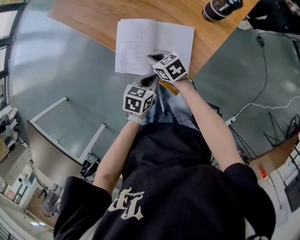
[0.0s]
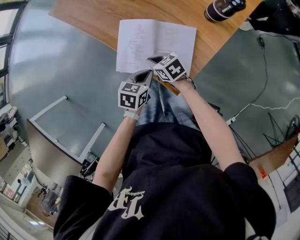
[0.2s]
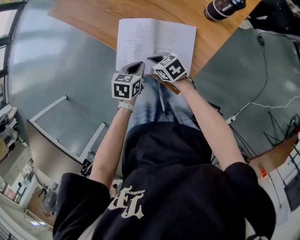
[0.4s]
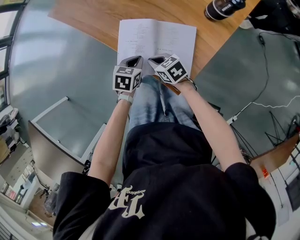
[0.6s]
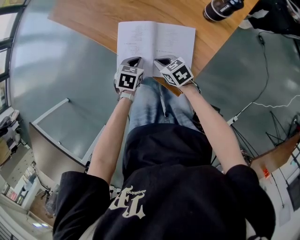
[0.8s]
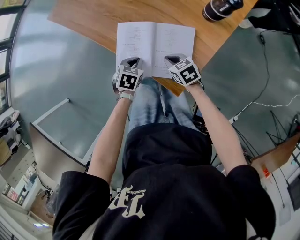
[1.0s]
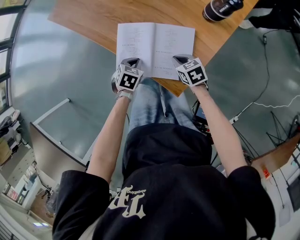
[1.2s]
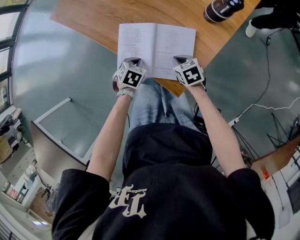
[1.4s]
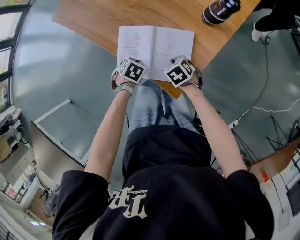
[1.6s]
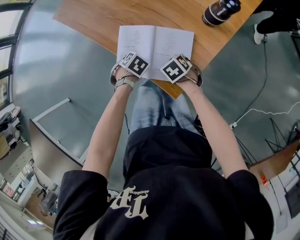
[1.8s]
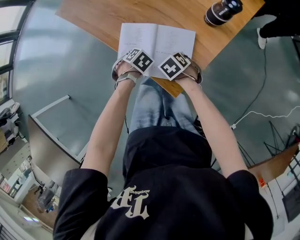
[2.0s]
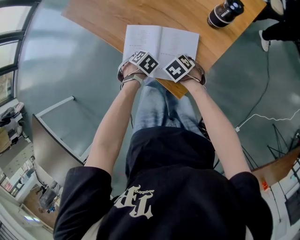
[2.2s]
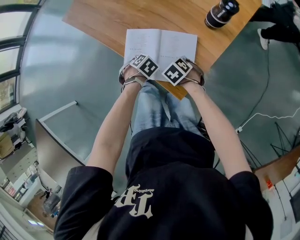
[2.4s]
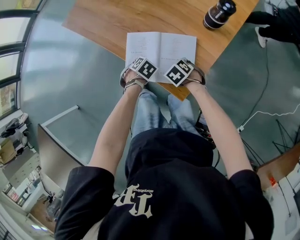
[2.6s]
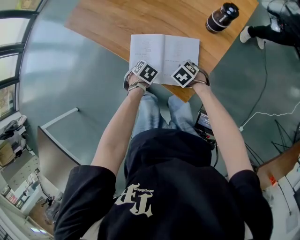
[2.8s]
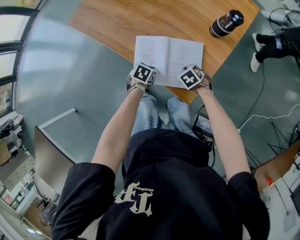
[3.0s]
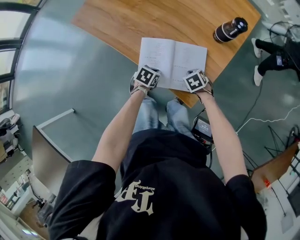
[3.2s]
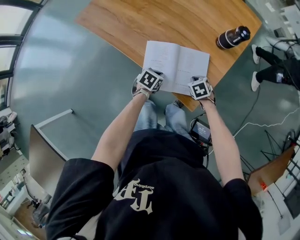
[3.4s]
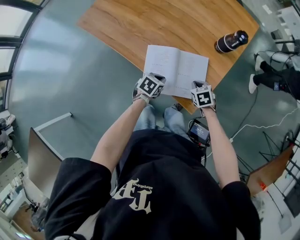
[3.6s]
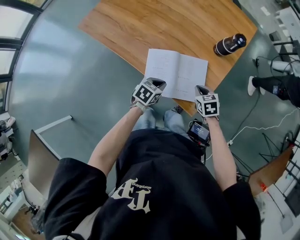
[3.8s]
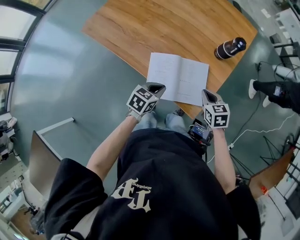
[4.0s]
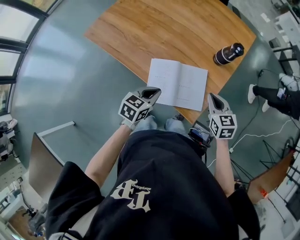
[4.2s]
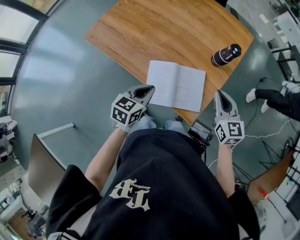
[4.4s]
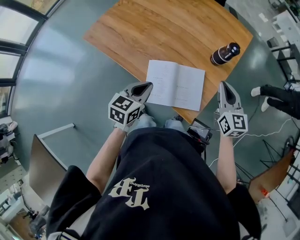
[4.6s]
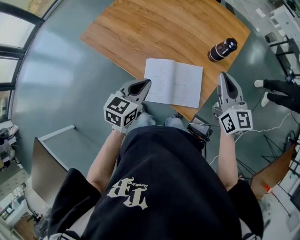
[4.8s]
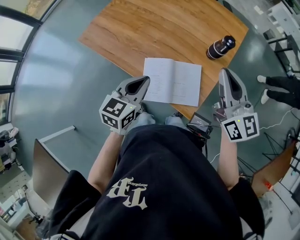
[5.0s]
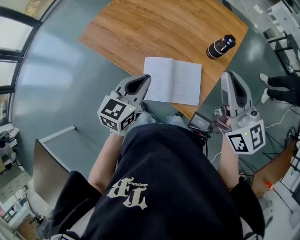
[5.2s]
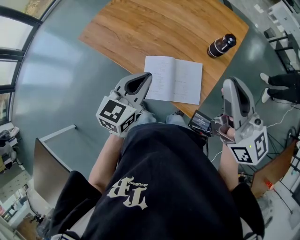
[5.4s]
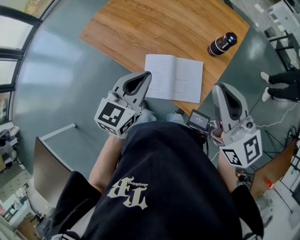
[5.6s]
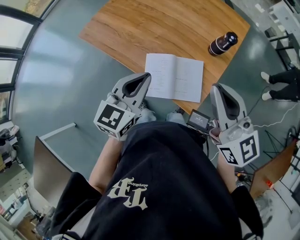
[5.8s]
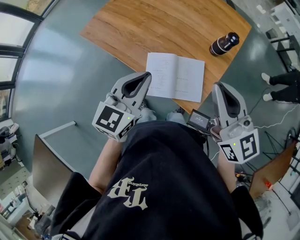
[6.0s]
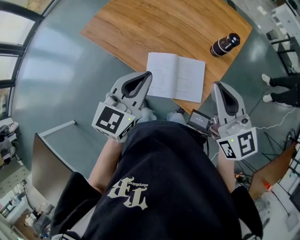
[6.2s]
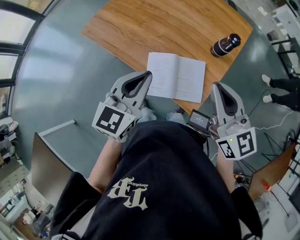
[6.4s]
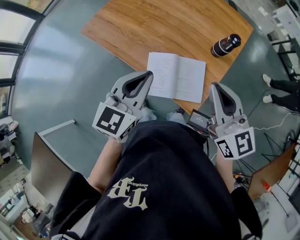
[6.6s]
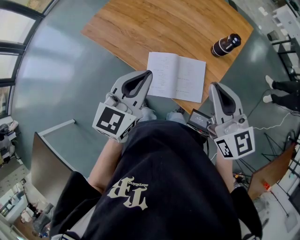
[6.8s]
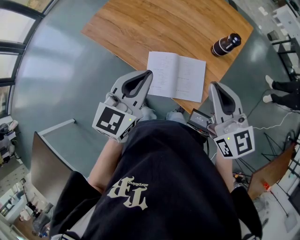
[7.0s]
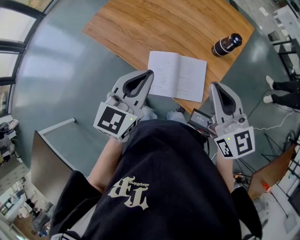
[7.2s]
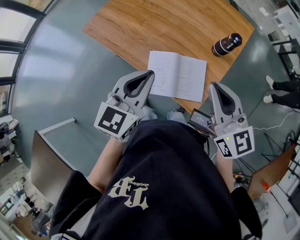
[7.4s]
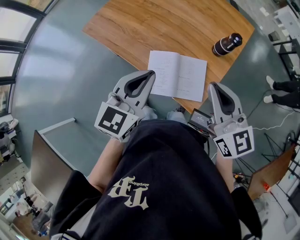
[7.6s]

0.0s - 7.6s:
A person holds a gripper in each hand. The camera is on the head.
0.0s - 1.6s: The right gripper ends up roughly 10 cm from where it was, and swivels roughly 30 degrees, while the left gripper shifts by about 15 cm, and tips its fingers downward by some 30 degrees.
1.6s - 3.0s: The grippers make only small movements.
3.0s - 4.6s: Both grippers move upward, about 30 cm. The right gripper angles its fingers upward, by approximately 60 degrees. Meanwhile the left gripper tilts its fingers about 40 degrees upward.
4.6s - 6.0s: The left gripper is displaced upward by some 15 cm; the right gripper goes about 20 cm upward, to the left and backward.
6.0s - 7.6s: The grippers stay close to where they were, moving slightly.

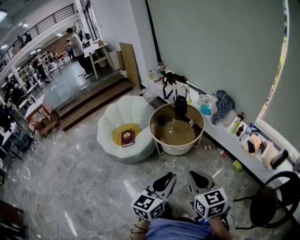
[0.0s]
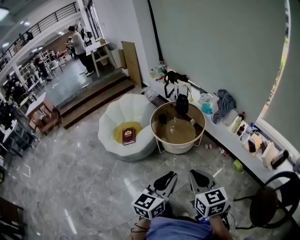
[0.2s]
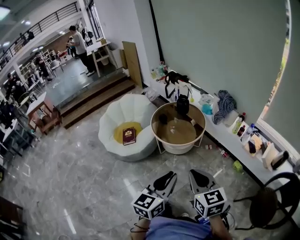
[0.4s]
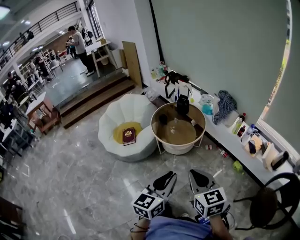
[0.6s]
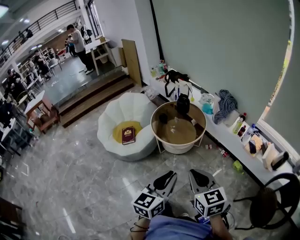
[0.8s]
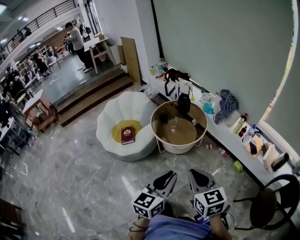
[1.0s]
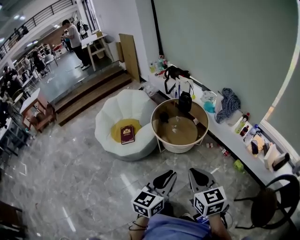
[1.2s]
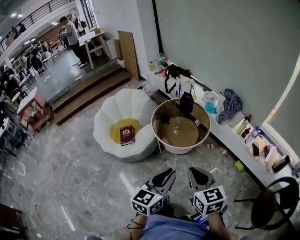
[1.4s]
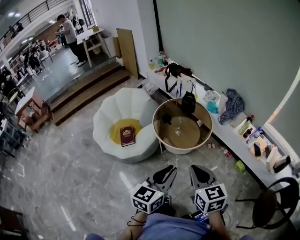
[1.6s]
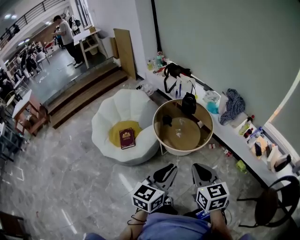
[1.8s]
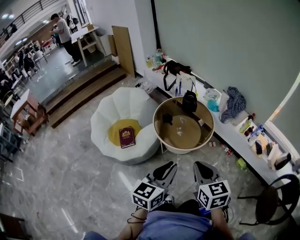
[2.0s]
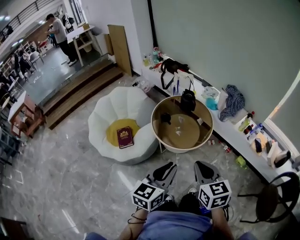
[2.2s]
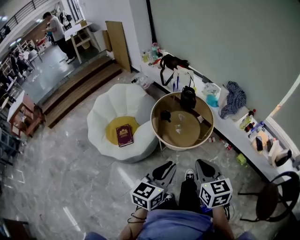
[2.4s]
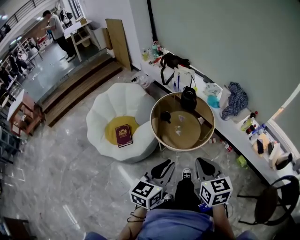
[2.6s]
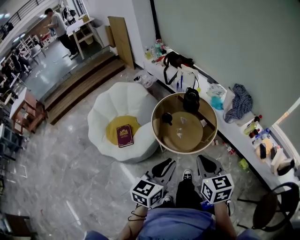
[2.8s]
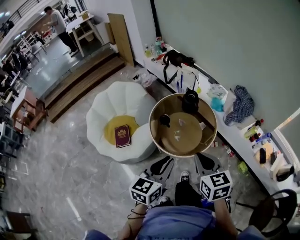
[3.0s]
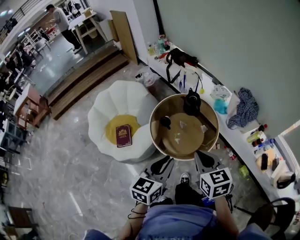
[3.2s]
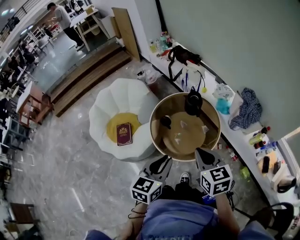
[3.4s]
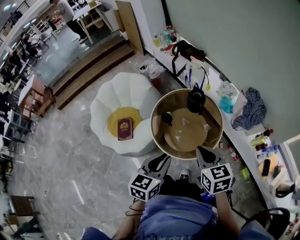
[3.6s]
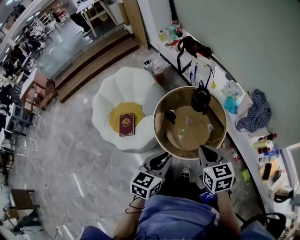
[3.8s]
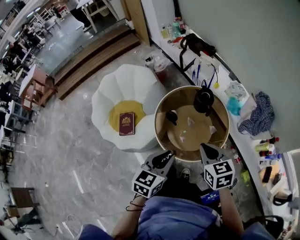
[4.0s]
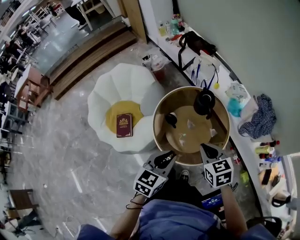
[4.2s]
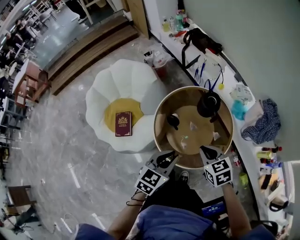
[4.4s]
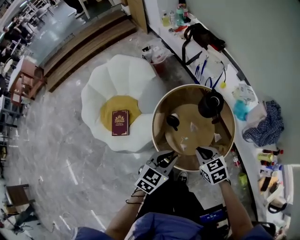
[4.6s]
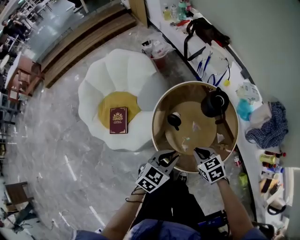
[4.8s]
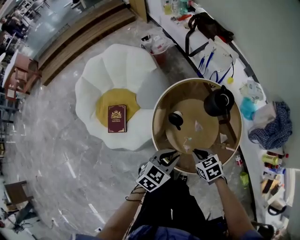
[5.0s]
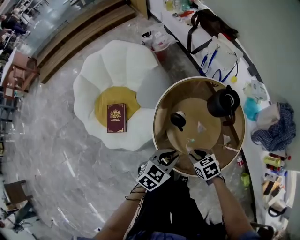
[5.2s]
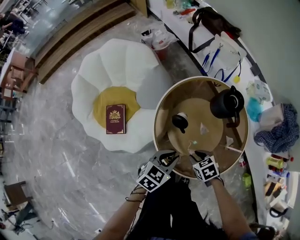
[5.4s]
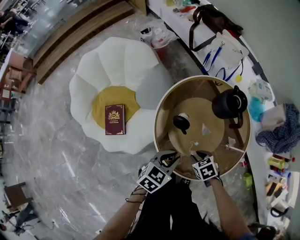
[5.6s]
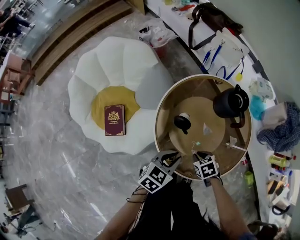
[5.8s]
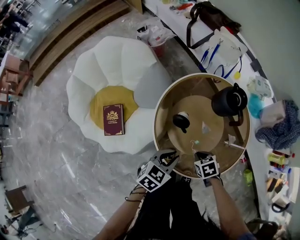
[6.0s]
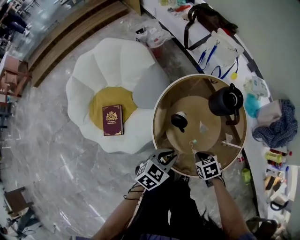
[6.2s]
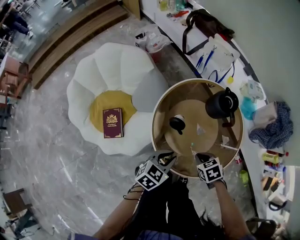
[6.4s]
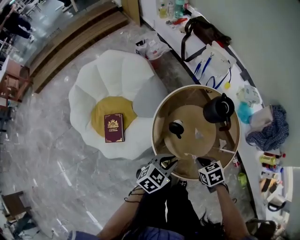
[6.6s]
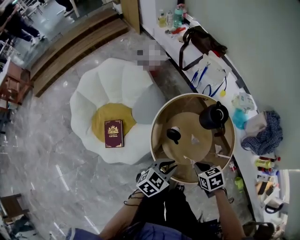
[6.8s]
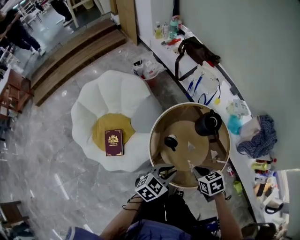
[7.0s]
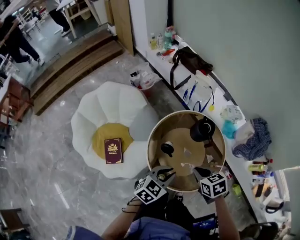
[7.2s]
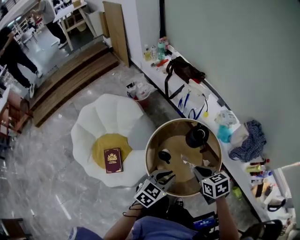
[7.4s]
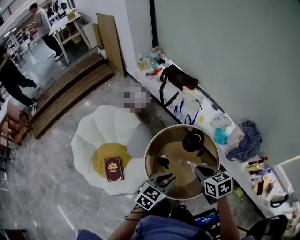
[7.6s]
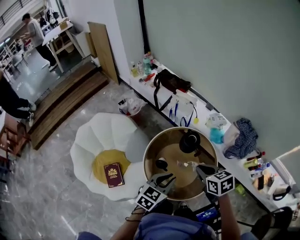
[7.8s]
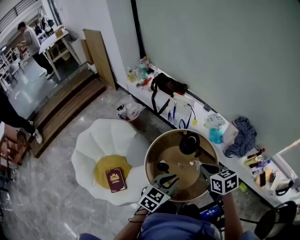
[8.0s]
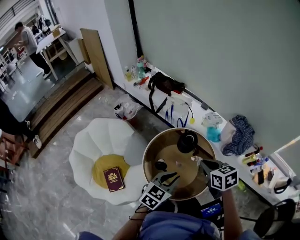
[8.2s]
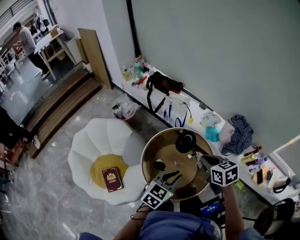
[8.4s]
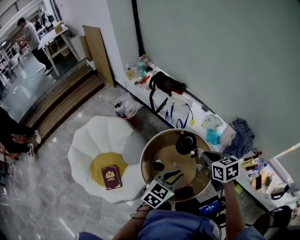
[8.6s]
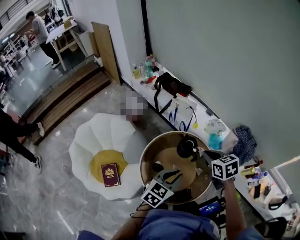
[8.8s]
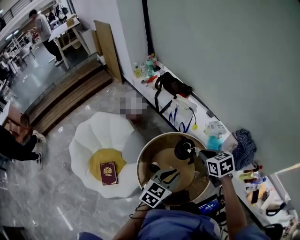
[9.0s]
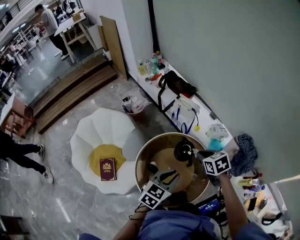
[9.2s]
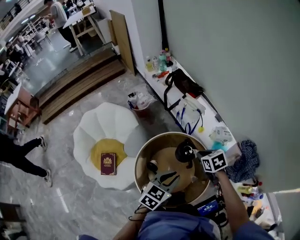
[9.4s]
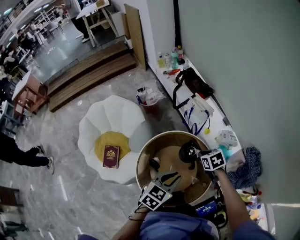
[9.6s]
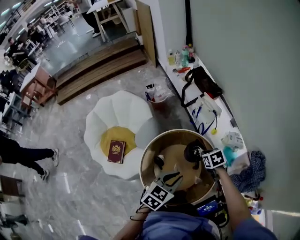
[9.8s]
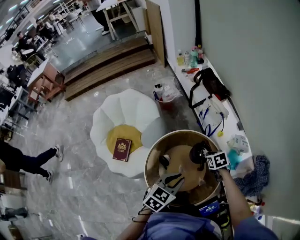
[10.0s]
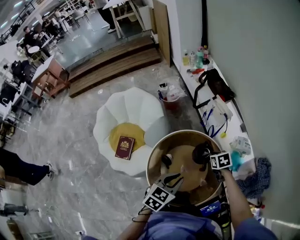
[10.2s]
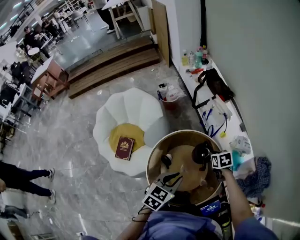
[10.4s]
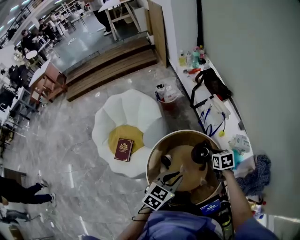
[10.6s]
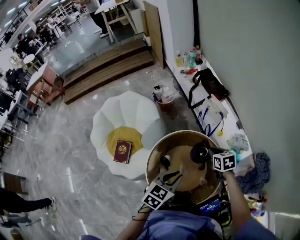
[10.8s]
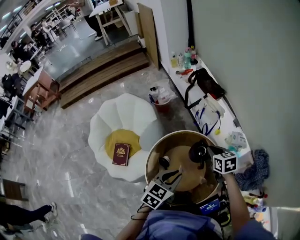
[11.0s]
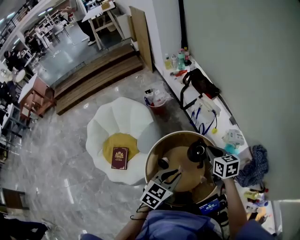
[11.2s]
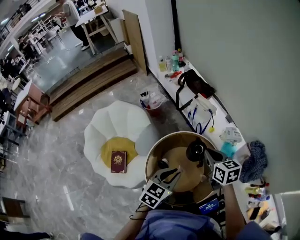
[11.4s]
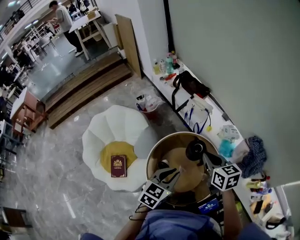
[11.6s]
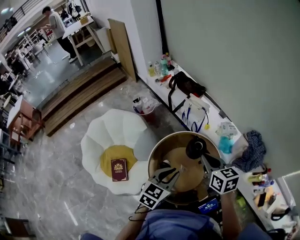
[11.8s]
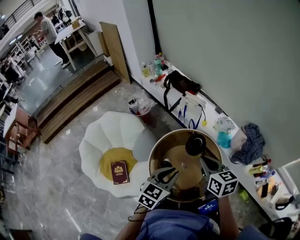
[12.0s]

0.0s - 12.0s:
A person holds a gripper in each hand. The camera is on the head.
0.0s - 1.6s: The two grippers go some 20 cm forward and to the left.
1.6s - 3.0s: Both grippers travel together forward, approximately 20 cm.
3.0s - 4.4s: Both grippers travel together forward and downward, approximately 25 cm. The right gripper swivels about 30 degrees.
4.4s - 6.0s: Both grippers move downward, approximately 25 cm. The right gripper rotates some 30 degrees, and opens, then closes once more.
6.0s - 7.6s: The right gripper heads upward, covering some 40 cm, and turns by approximately 30 degrees. The left gripper goes some 25 cm upward.
7.6s - 9.0s: The two grippers go roughly 15 cm forward and to the right.
9.0s - 10.4s: The right gripper goes roughly 20 cm downward and forward; the left gripper changes its angle by some 30 degrees.
10.4s - 12.0s: The left gripper is displaced to the left and upward by about 10 cm, and swivels about 20 degrees. The right gripper travels upward, backward and to the left by about 30 cm, and angles its fingers upward, by roughly 30 degrees.

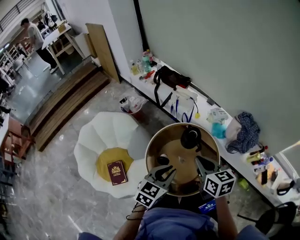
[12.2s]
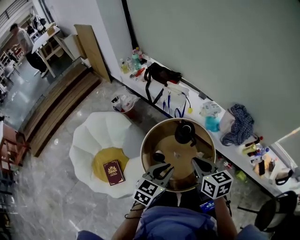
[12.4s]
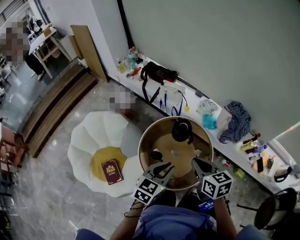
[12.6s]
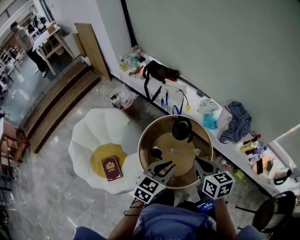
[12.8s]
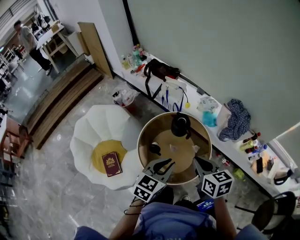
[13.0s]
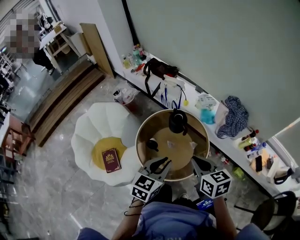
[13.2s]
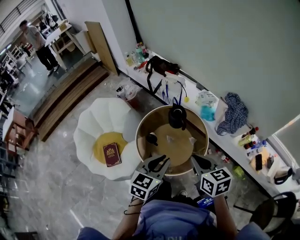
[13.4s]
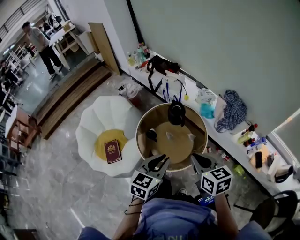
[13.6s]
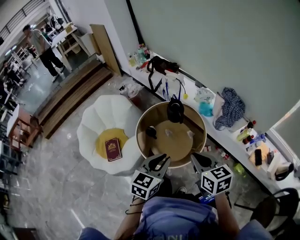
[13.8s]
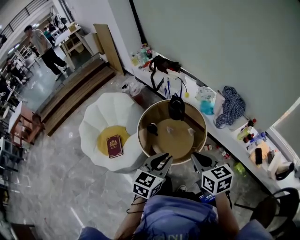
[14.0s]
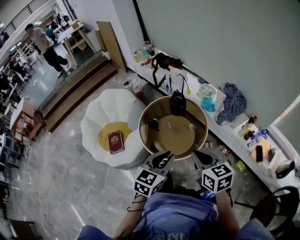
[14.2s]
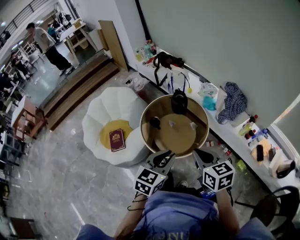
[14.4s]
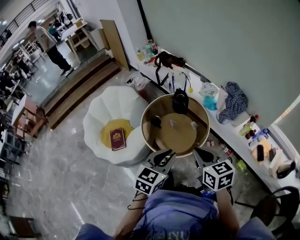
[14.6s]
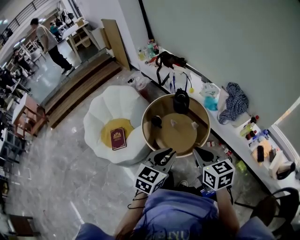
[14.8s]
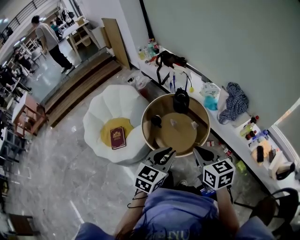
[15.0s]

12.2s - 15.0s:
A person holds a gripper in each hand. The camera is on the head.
12.2s - 13.6s: Both grippers travel together backward and to the right, approximately 20 cm.
13.6s - 15.0s: Both grippers move backward, some 10 cm.

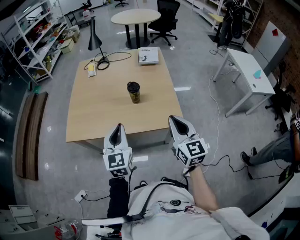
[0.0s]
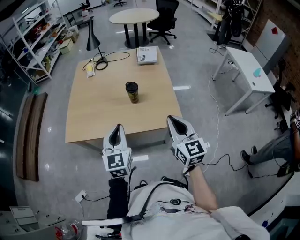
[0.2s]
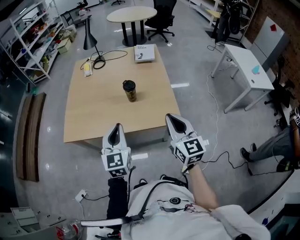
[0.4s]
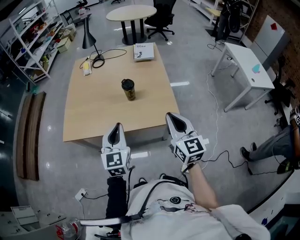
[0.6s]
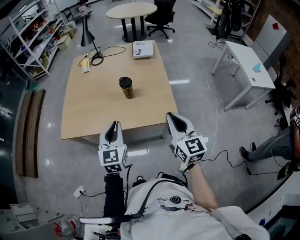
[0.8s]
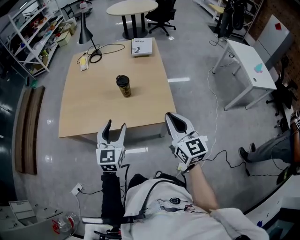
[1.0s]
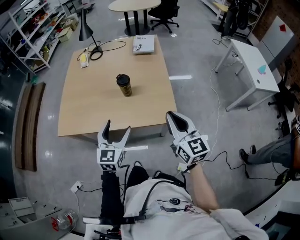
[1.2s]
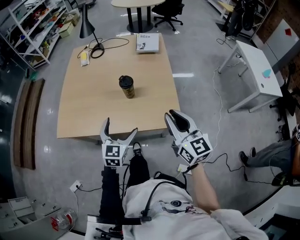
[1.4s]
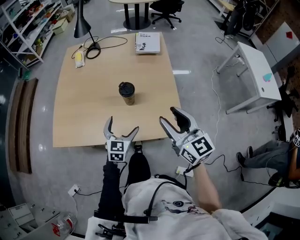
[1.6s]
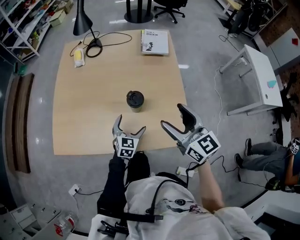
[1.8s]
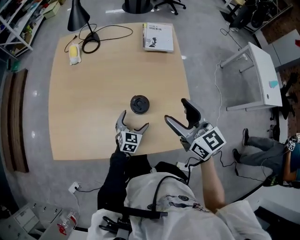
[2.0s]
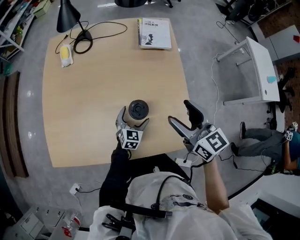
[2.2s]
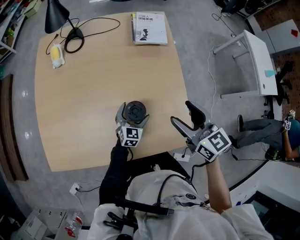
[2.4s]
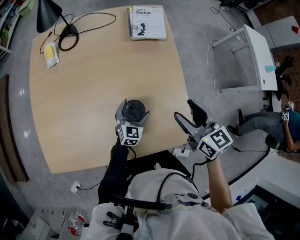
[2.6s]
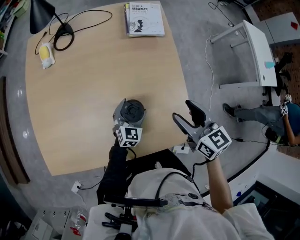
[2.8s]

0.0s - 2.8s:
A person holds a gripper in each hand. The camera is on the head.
0.0s - 1.4s: The right gripper travels forward by some 5 cm. Meanwhile the left gripper heads downward, forward and to the right, covering roughly 15 cm, and opens up.
1.4s - 2.8s: The two grippers go about 30 cm forward and downward. The right gripper swivels approximately 30 degrees, and opens its fingers.
